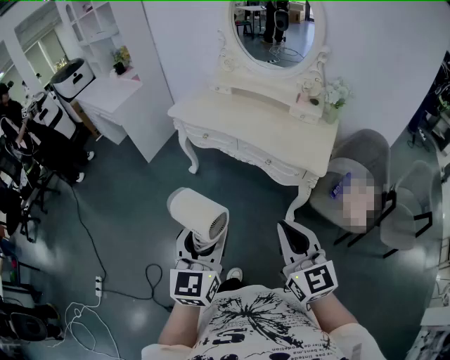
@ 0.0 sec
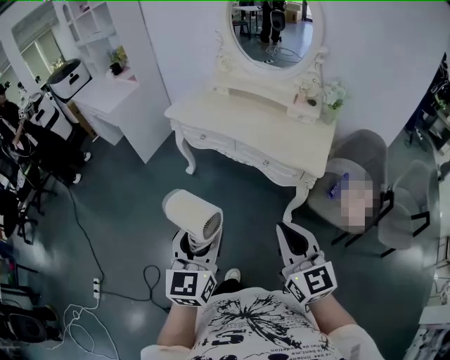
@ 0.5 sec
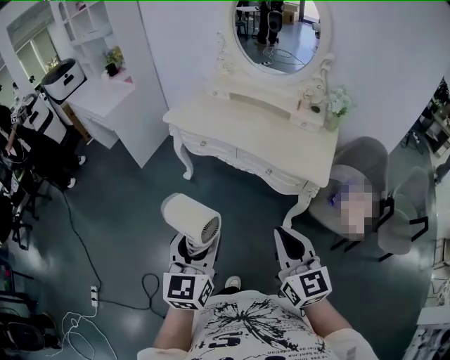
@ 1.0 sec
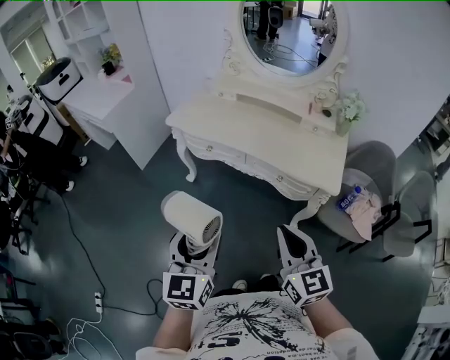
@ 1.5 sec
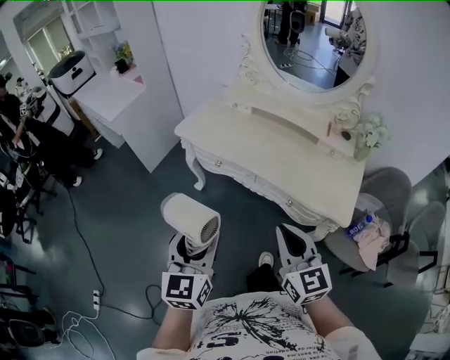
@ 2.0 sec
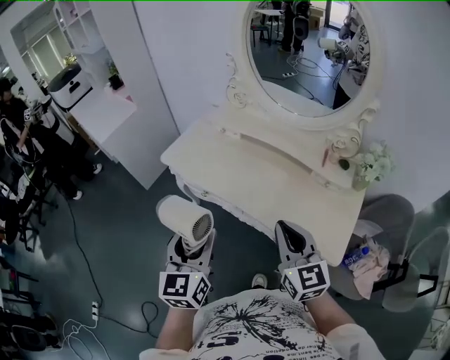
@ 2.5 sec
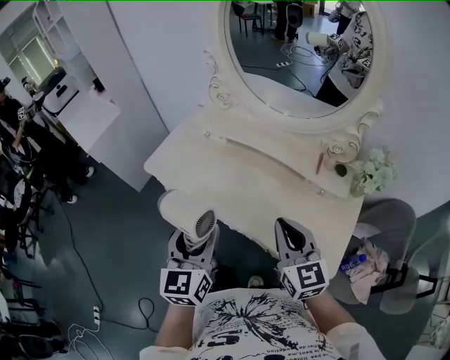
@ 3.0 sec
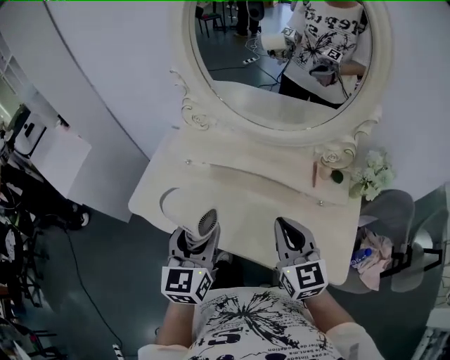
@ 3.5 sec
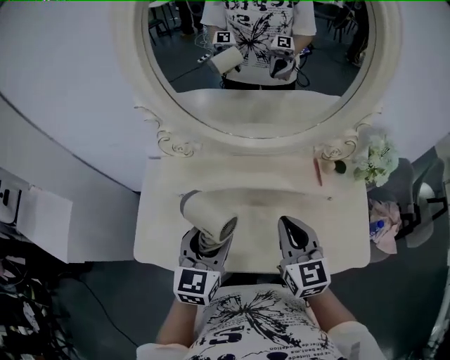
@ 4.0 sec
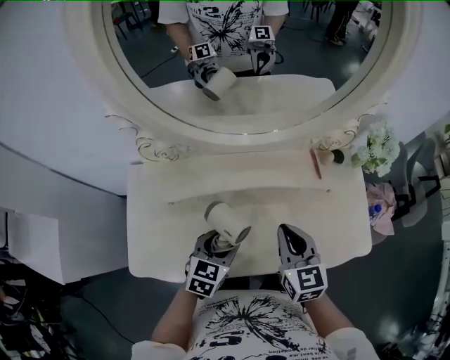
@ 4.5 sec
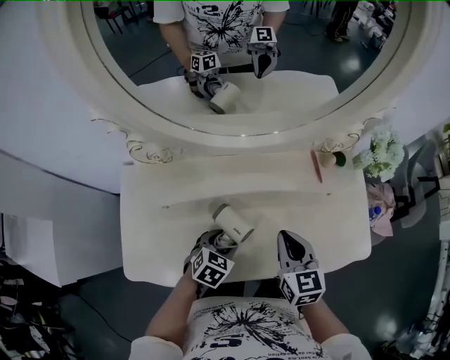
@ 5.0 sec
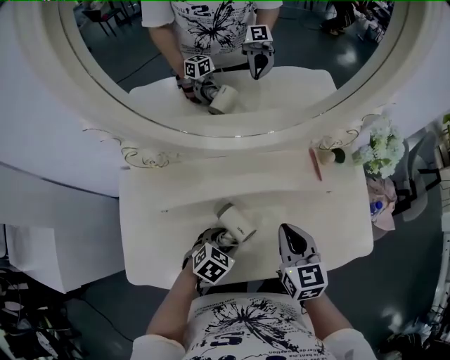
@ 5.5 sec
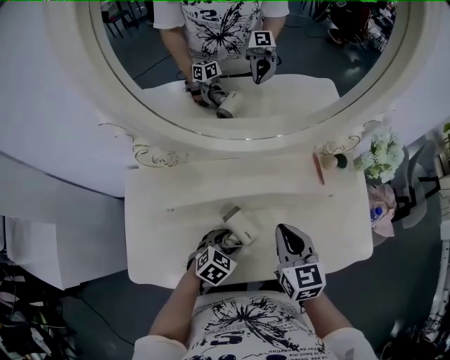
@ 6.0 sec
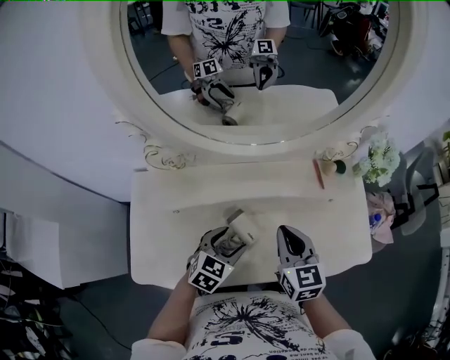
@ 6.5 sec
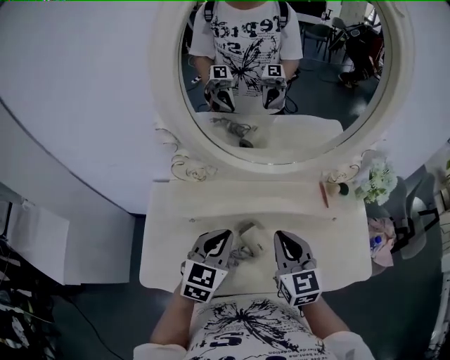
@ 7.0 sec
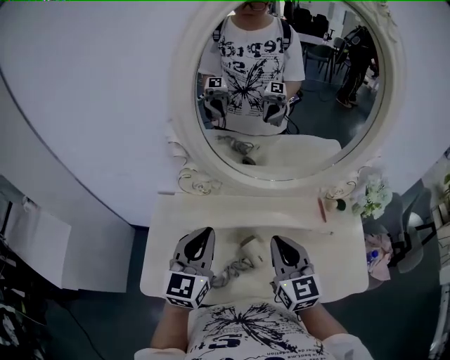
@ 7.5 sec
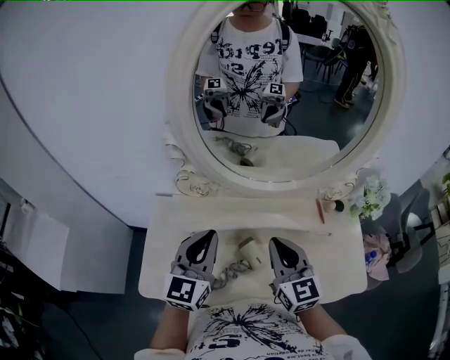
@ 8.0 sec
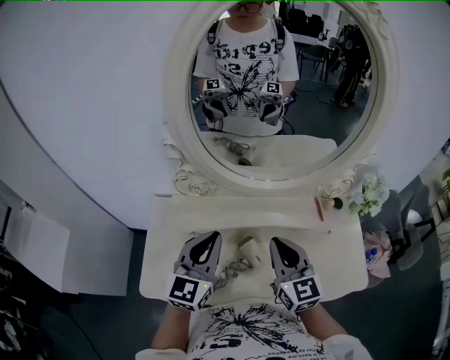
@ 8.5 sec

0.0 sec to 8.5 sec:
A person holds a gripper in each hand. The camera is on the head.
0.0 sec to 2.0 sec: Both grippers travel together forward, roughly 25 cm.
2.0 sec to 4.0 sec: The pair of grippers is taken approximately 50 cm. The left gripper rotates roughly 40 degrees. The right gripper turns by some 30 degrees.
4.0 sec to 6.5 sec: The right gripper moves downward, roughly 5 cm, while the left gripper goes roughly 15 cm downward, and rotates some 40 degrees.
6.5 sec to 8.5 sec: The right gripper moves upward and to the left, approximately 10 cm. The left gripper shifts about 25 cm upward and to the left, tips its fingers upward by about 40 degrees, and closes its fingers.

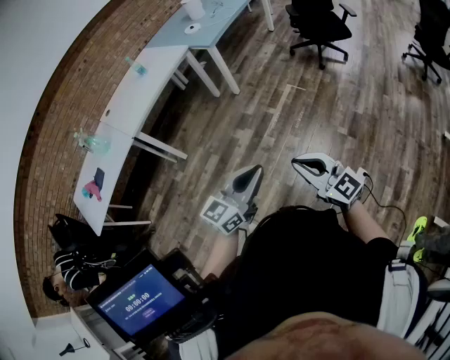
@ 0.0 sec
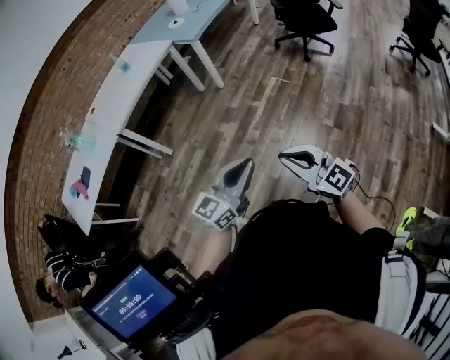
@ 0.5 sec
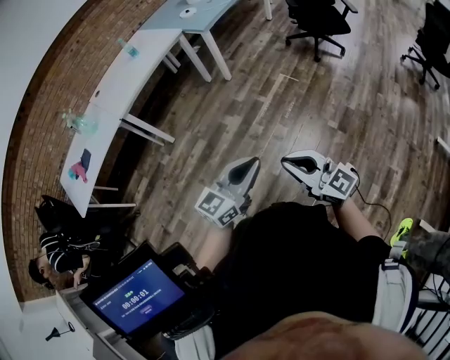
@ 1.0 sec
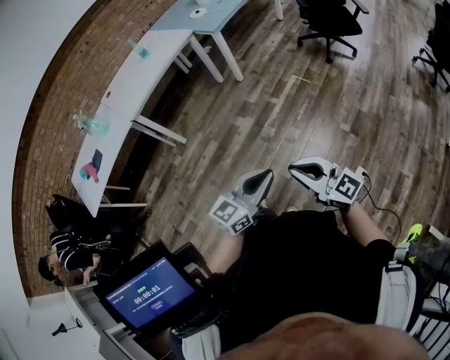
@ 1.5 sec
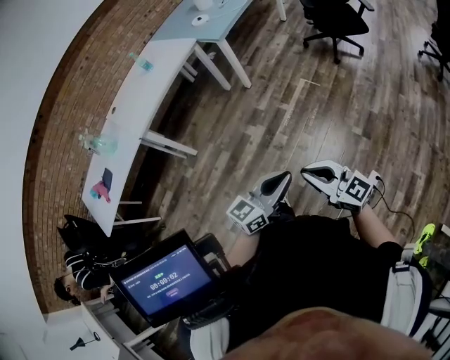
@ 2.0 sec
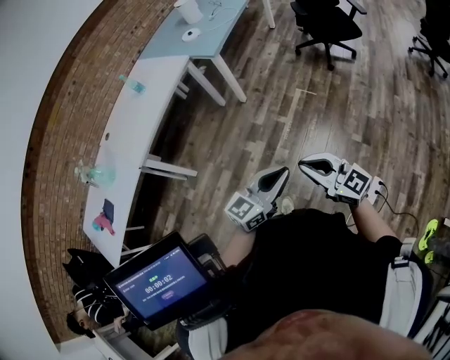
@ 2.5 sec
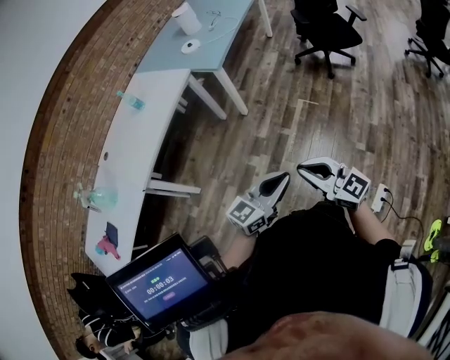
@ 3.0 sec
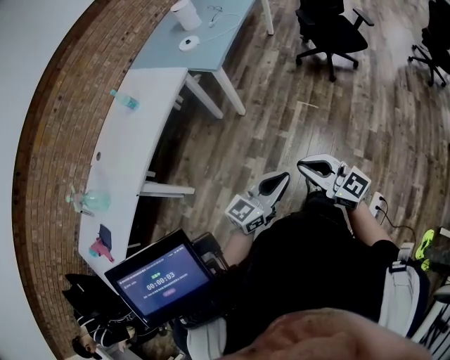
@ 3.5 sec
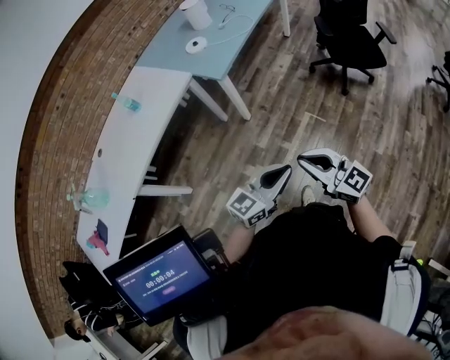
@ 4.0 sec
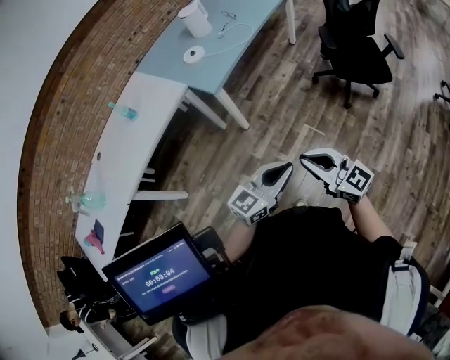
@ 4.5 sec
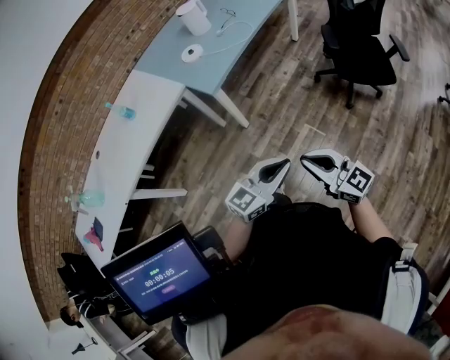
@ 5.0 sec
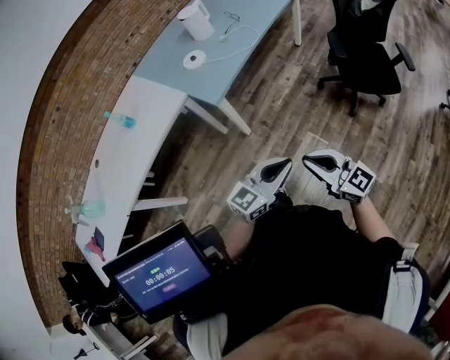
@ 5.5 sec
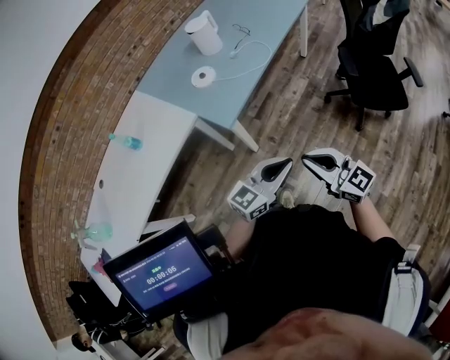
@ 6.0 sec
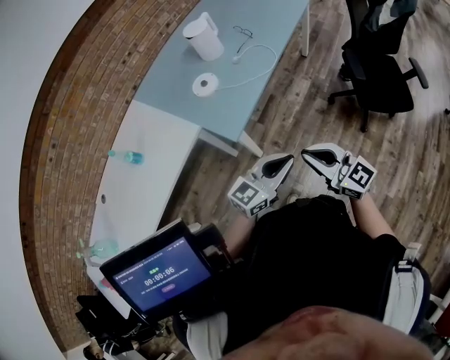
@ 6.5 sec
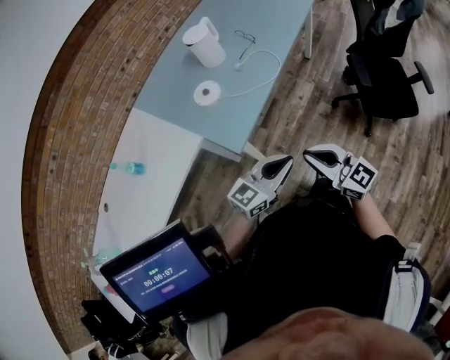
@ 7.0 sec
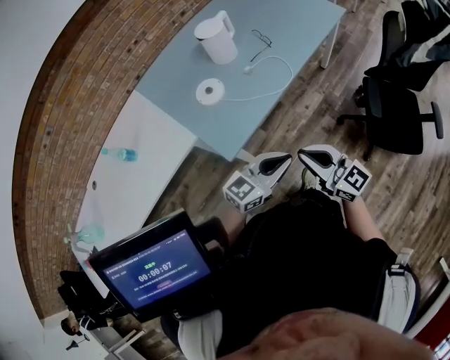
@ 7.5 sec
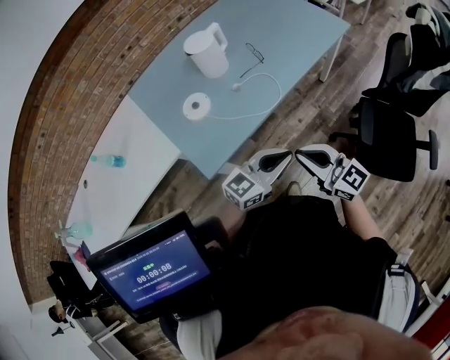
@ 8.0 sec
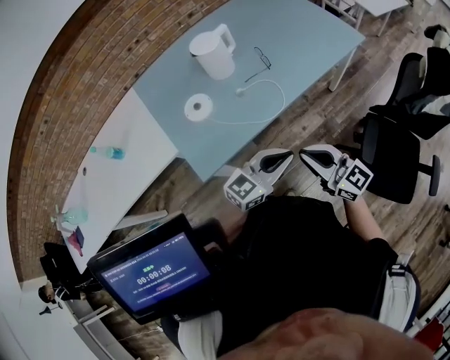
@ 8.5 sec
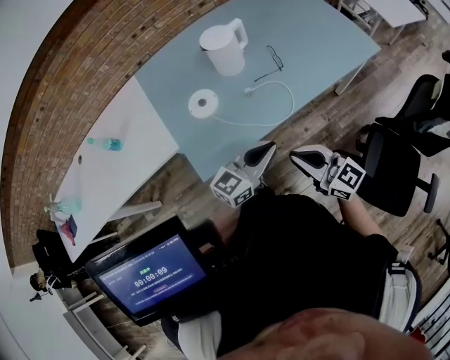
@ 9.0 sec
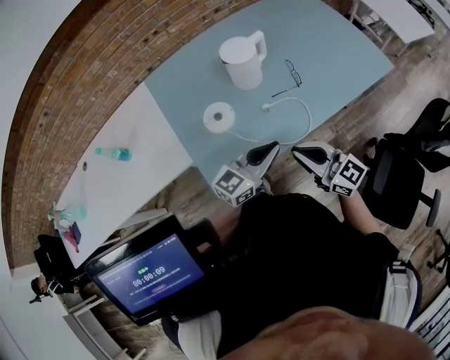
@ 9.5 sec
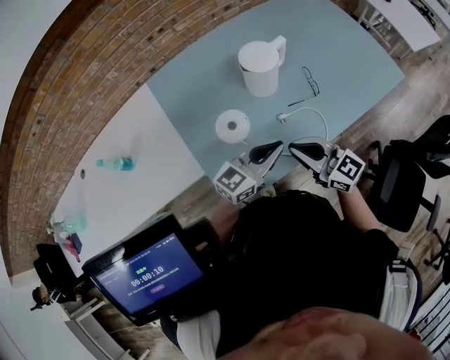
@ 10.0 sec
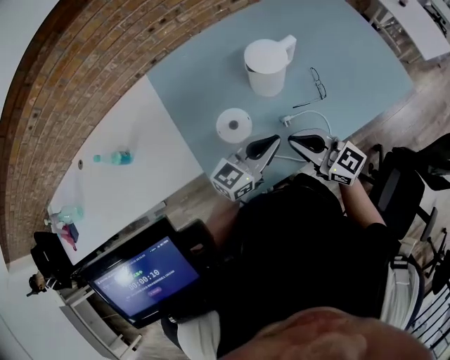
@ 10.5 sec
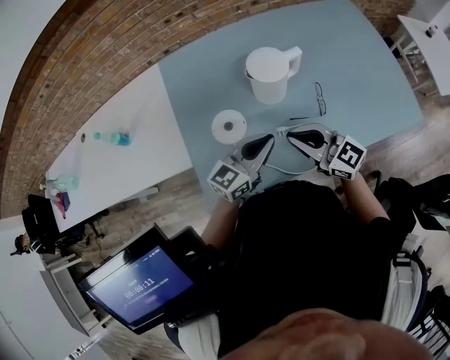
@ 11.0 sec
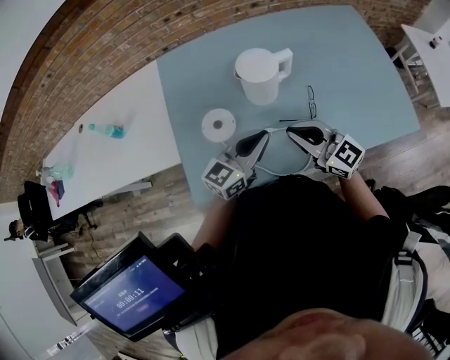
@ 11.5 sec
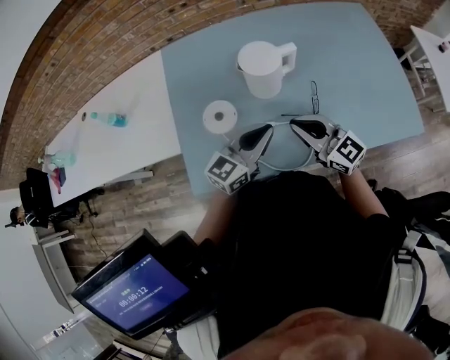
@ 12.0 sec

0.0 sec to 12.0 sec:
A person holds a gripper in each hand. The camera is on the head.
0.0 sec to 2.0 sec: The right gripper moves forward, approximately 5 cm; the left gripper goes roughly 5 cm downward.
2.0 sec to 4.0 sec: Both grippers move forward, about 40 cm.
4.0 sec to 6.0 sec: Both grippers travel together forward, approximately 30 cm.
6.0 sec to 8.0 sec: The two grippers go some 30 cm forward.
8.0 sec to 10.0 sec: Both grippers move forward and to the left, about 25 cm.
10.0 sec to 12.0 sec: The right gripper travels to the right and forward by roughly 15 cm. The left gripper moves forward and to the right, some 10 cm, and changes its angle by roughly 30 degrees.

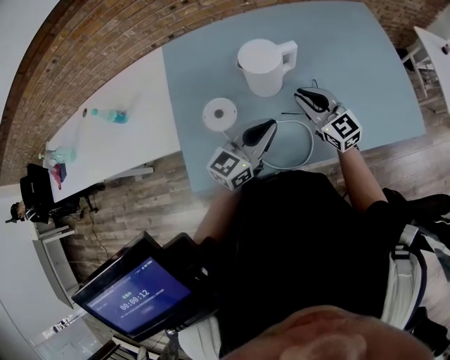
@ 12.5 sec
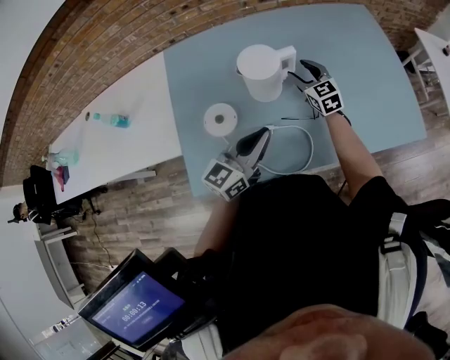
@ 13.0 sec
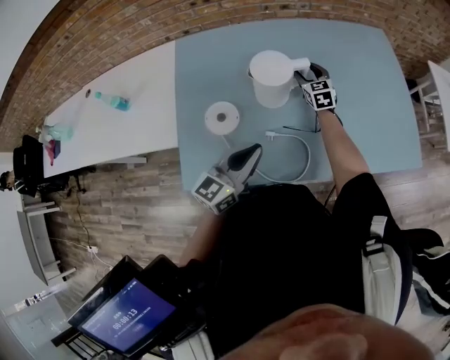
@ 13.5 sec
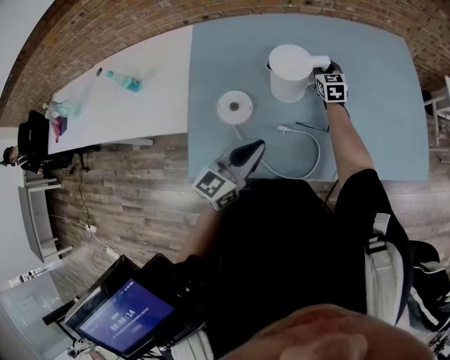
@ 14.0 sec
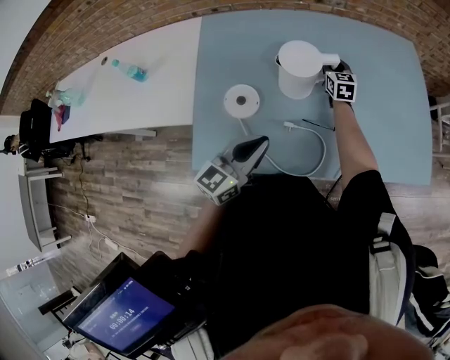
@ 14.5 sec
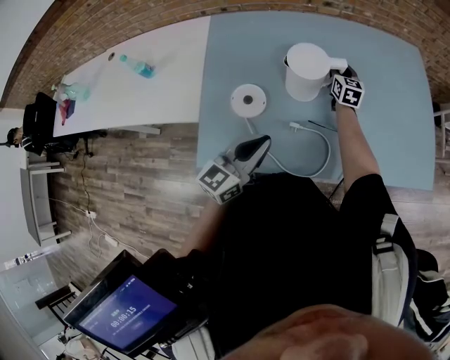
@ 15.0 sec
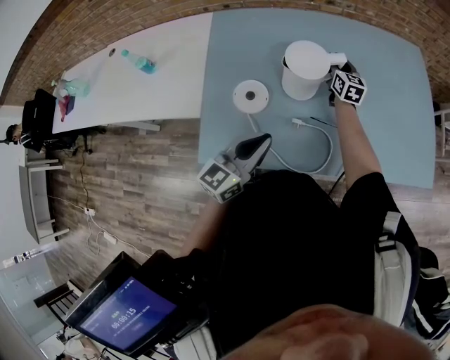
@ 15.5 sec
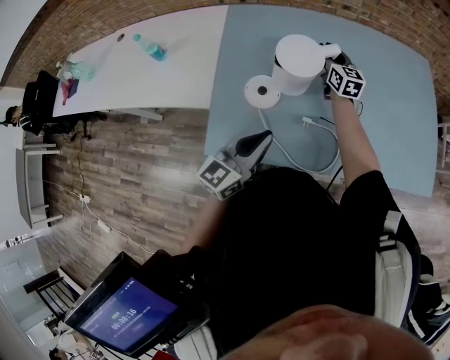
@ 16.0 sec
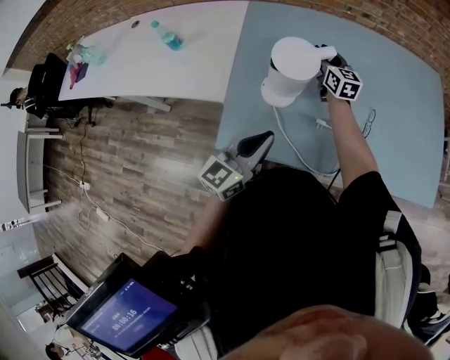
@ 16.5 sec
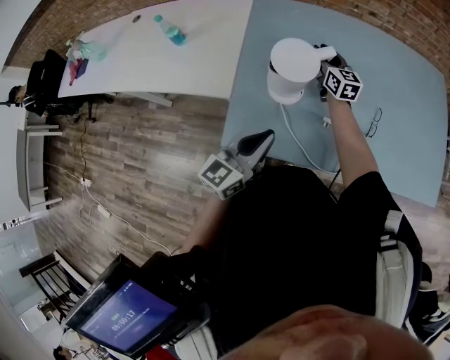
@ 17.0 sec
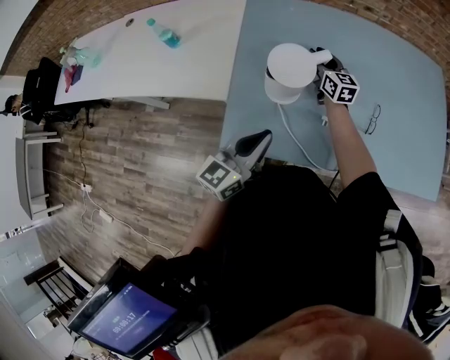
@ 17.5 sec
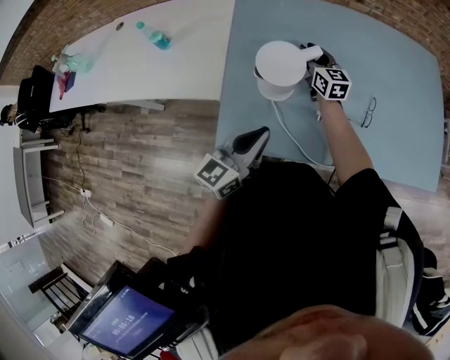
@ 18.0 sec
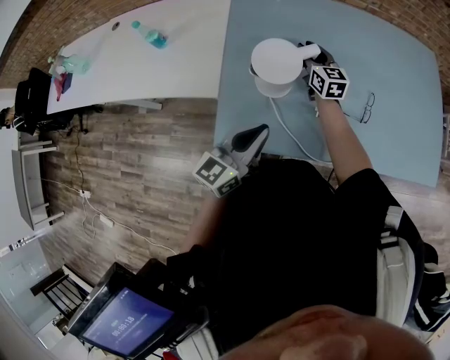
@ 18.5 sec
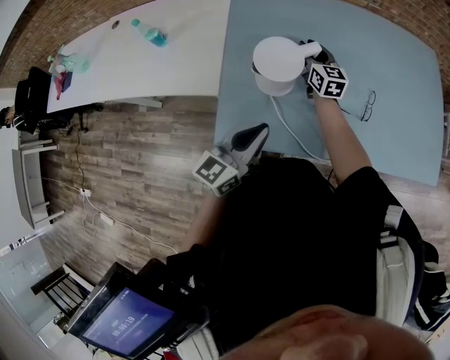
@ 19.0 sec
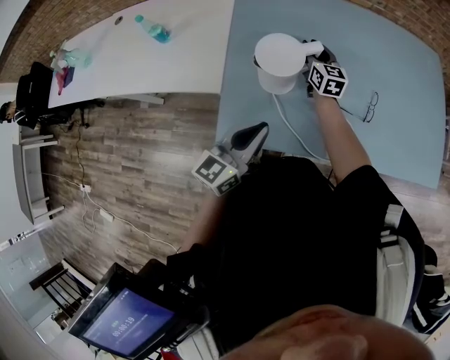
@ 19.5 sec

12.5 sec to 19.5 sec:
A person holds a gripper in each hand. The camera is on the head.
12.5 sec to 14.5 sec: The left gripper shifts about 5 cm to the left; the right gripper goes approximately 25 cm forward and downward, turns by some 30 degrees, and opens, then closes once more.
14.5 sec to 16.0 sec: The right gripper moves to the left and upward, approximately 15 cm. Meanwhile the left gripper moves to the left, roughly 5 cm.
16.0 sec to 17.5 sec: The left gripper is displaced to the left by some 5 cm, while the right gripper goes about 10 cm to the left.
17.5 sec to 19.5 sec: The grippers make only small movements.
